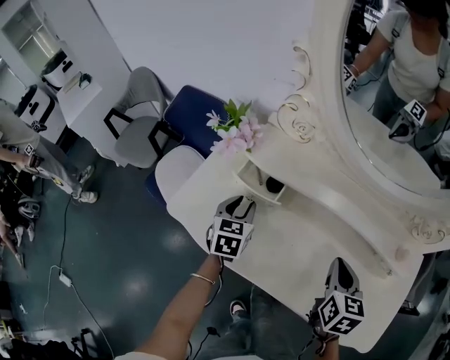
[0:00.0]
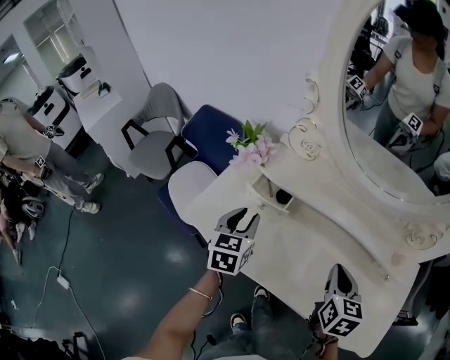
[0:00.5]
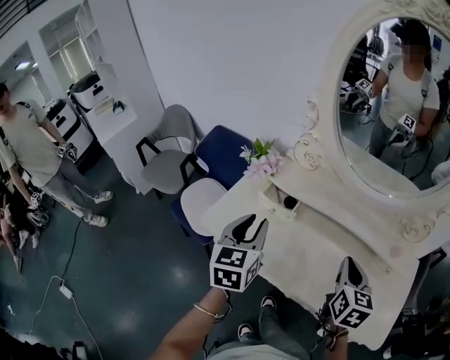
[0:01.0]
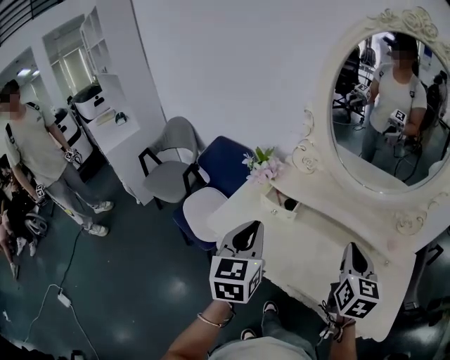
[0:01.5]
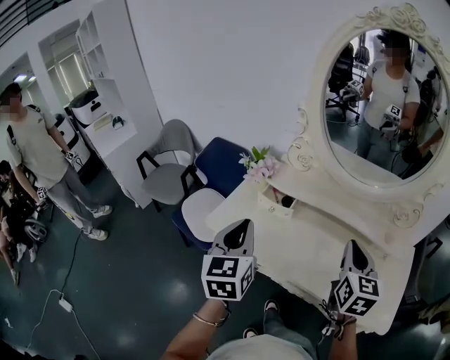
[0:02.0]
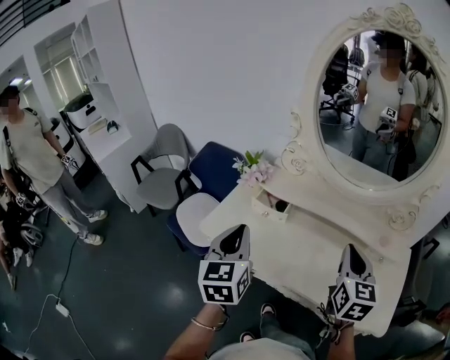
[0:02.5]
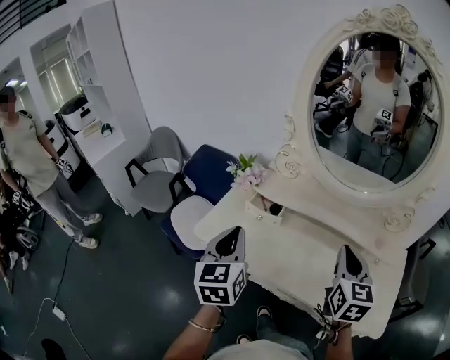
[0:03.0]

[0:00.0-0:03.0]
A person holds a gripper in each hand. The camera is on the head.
0:00.0 to 0:01.5: The right gripper moves upward, roughly 15 cm, and changes its angle by some 20 degrees, while the left gripper is displaced upward and backward by about 35 cm, rotates roughly 30 degrees, and closes up.
0:01.5 to 0:03.0: There are only small adjustments of the grippers.

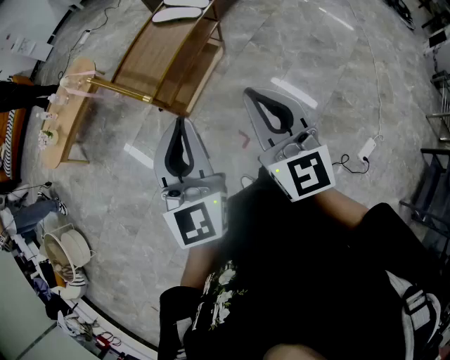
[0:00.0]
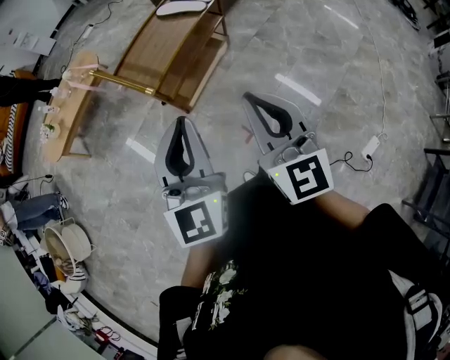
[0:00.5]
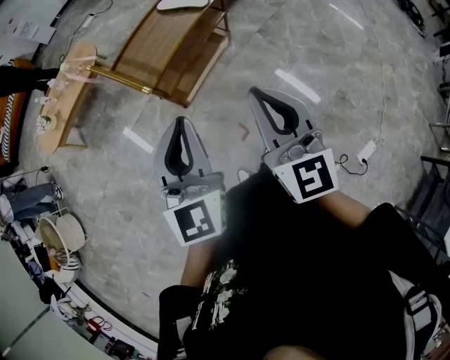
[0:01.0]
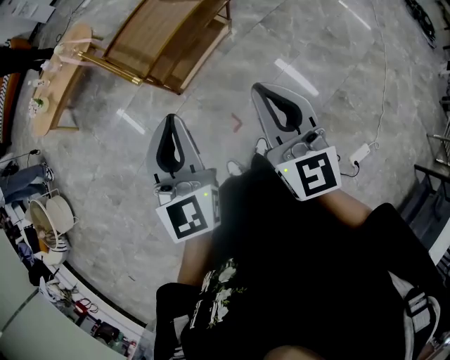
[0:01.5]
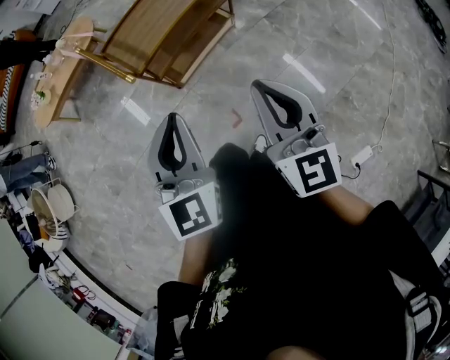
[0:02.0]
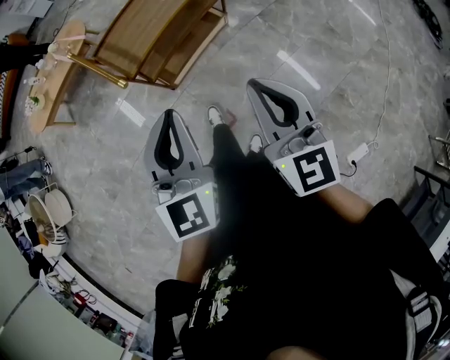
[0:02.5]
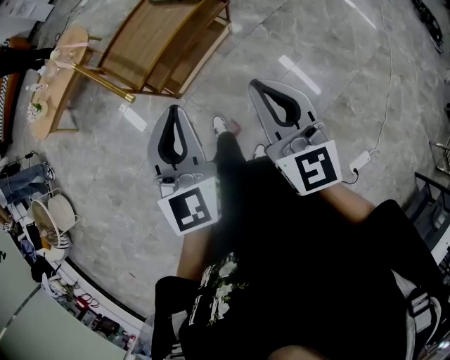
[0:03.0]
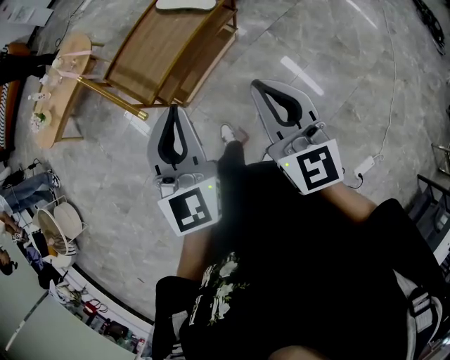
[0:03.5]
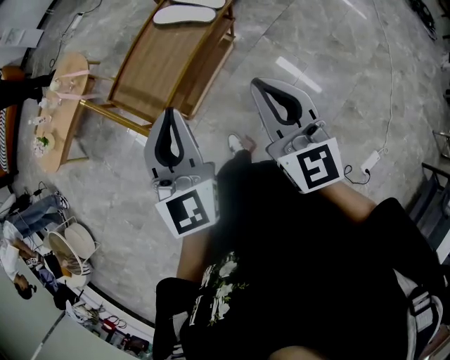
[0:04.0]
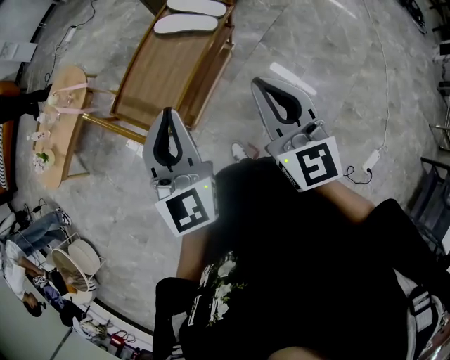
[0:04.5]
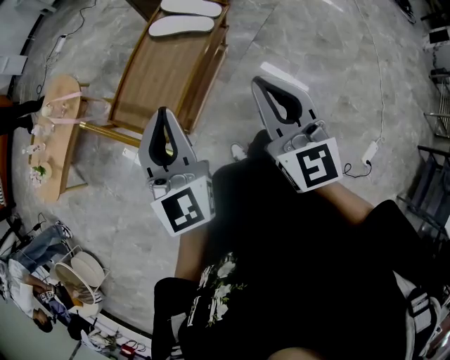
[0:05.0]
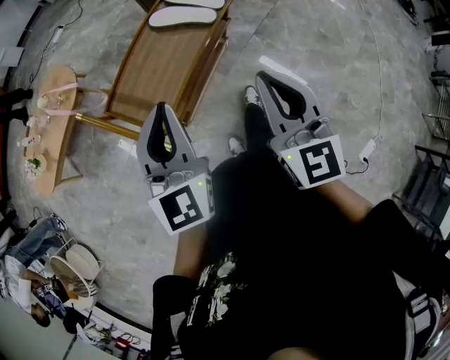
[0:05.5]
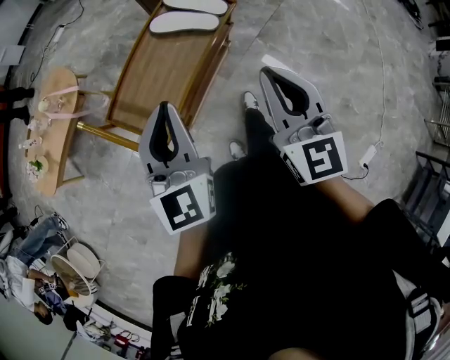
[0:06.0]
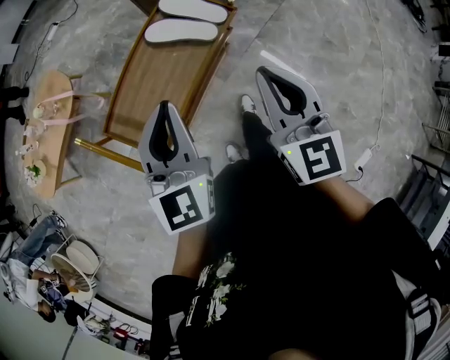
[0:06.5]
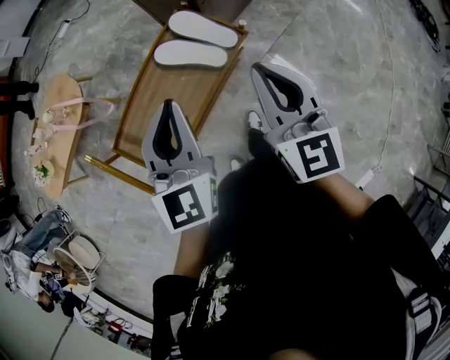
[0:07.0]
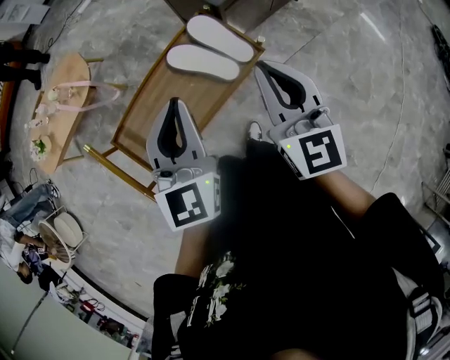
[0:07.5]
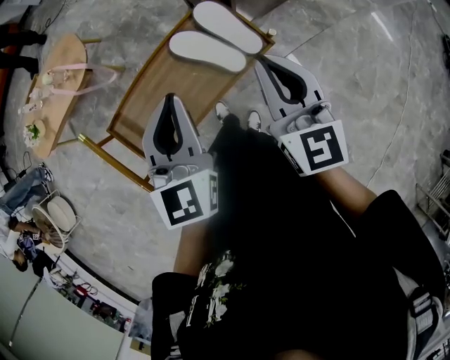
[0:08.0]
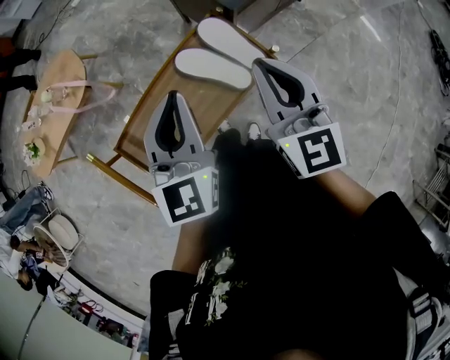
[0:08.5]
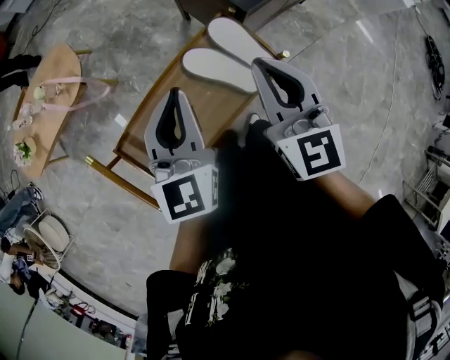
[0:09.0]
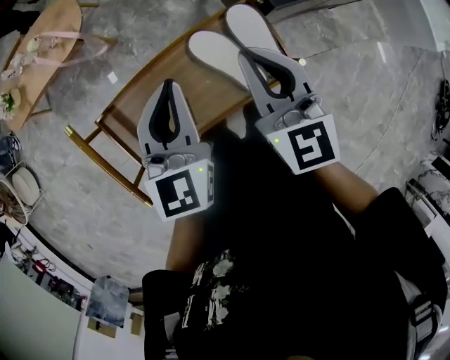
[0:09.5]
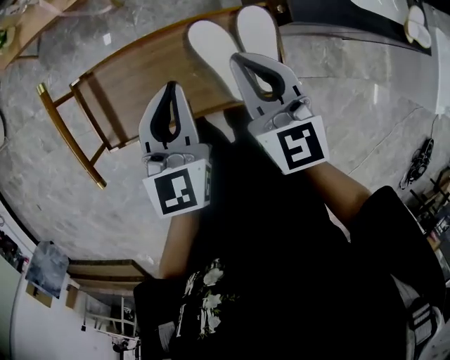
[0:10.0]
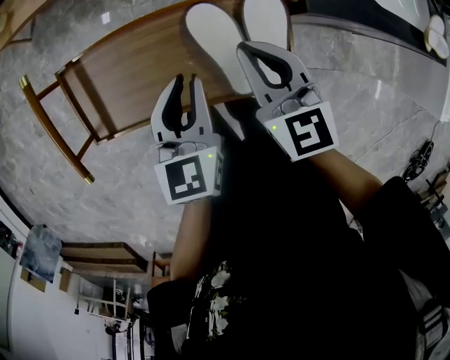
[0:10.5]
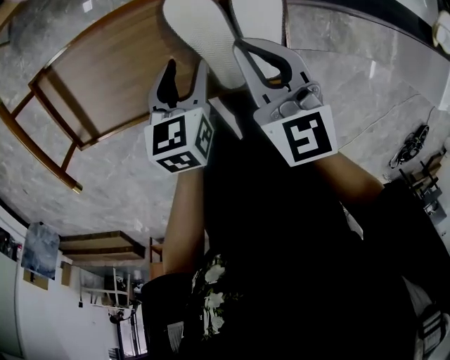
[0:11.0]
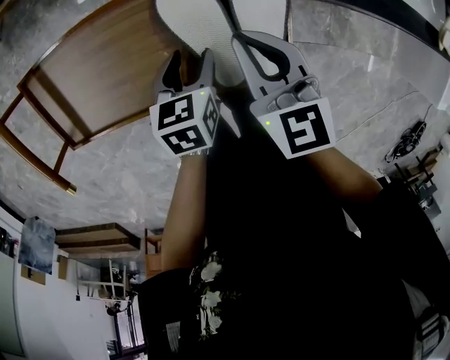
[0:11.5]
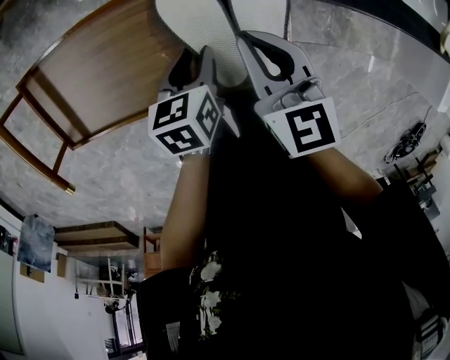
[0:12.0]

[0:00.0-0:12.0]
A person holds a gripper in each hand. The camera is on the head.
0:00.0 to 0:02.0: The left gripper shifts some 10 cm downward and to the right; the right gripper shifts about 10 cm to the right.
0:02.0 to 0:04.0: Both grippers travel together forward, some 20 cm.
0:04.0 to 0:06.0: Both grippers move forward, roughly 10 cm.
0:06.0 to 0:08.0: Both grippers move forward, some 20 cm. The right gripper rotates about 20 degrees.
0:08.0 to 0:10.0: The right gripper shifts by some 15 cm, and changes its angle by some 40 degrees. Meanwhile the left gripper goes roughly 10 cm downward, and rotates about 30 degrees.
0:10.0 to 0:12.0: The left gripper moves downward, roughly 25 cm, turns by approximately 40 degrees, and opens up; the right gripper heads downward, covering some 15 cm.

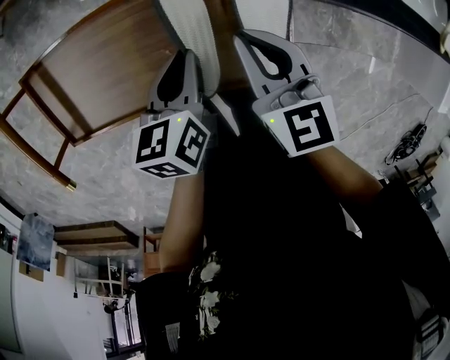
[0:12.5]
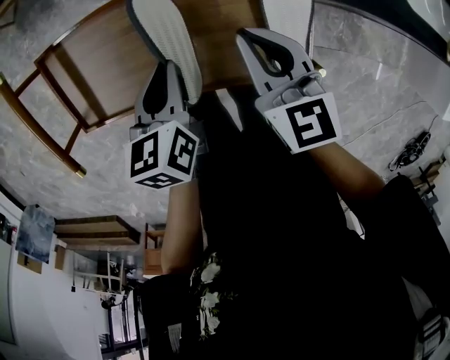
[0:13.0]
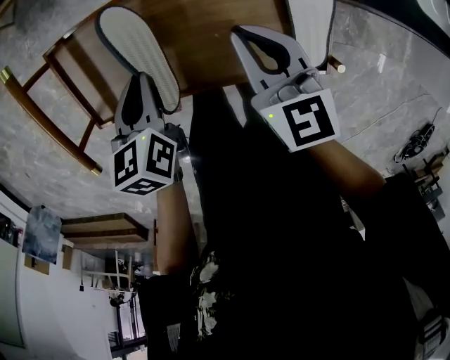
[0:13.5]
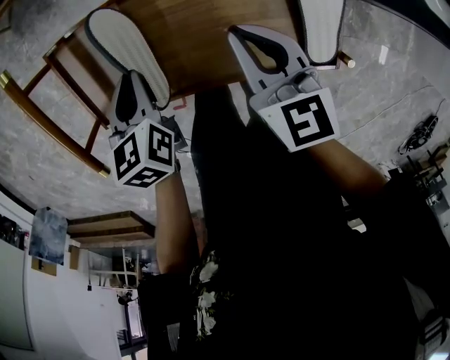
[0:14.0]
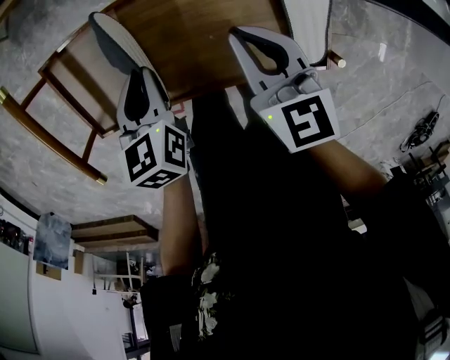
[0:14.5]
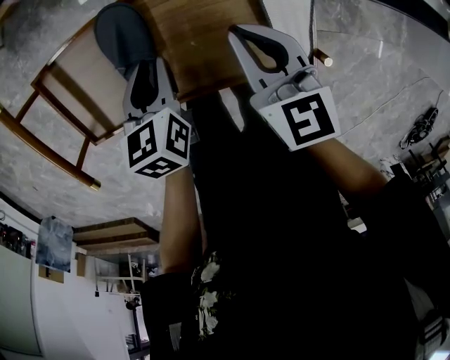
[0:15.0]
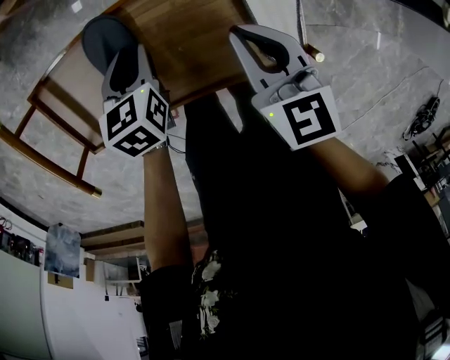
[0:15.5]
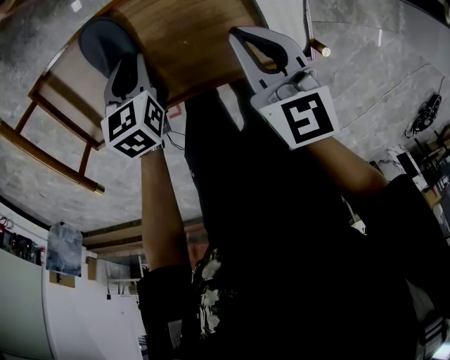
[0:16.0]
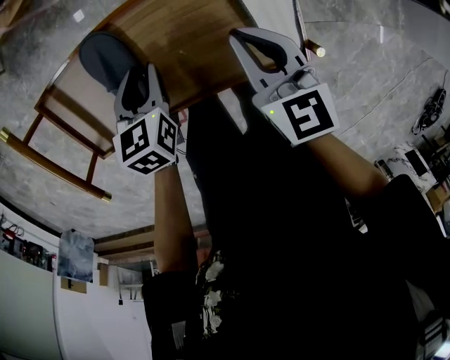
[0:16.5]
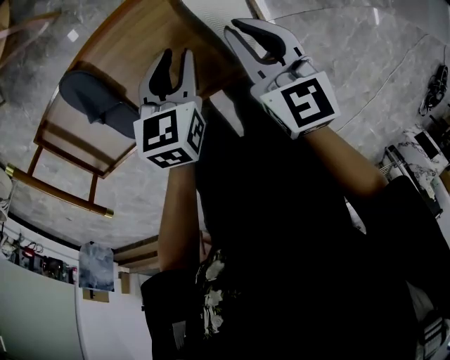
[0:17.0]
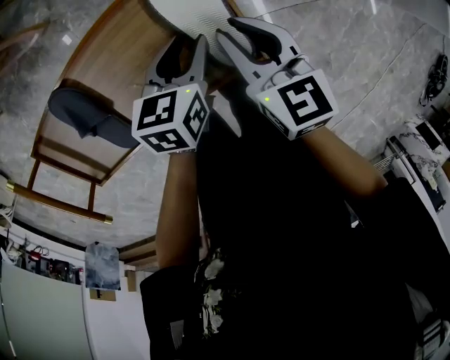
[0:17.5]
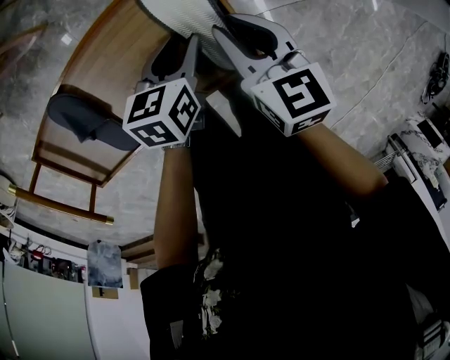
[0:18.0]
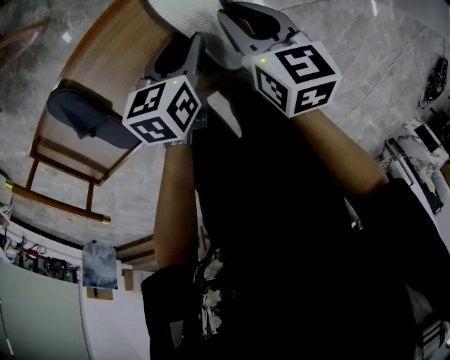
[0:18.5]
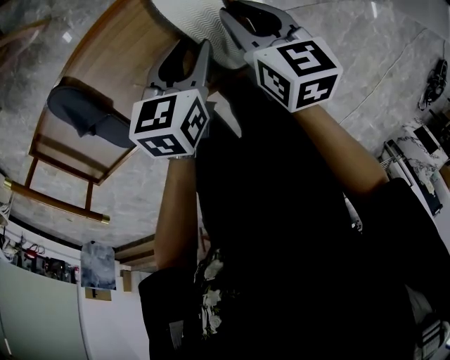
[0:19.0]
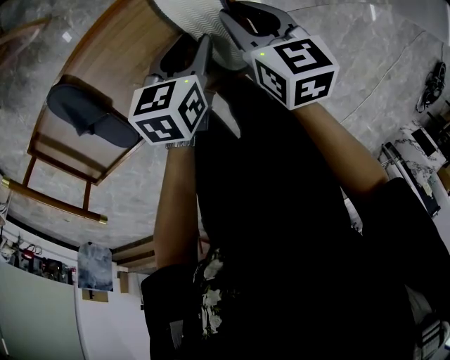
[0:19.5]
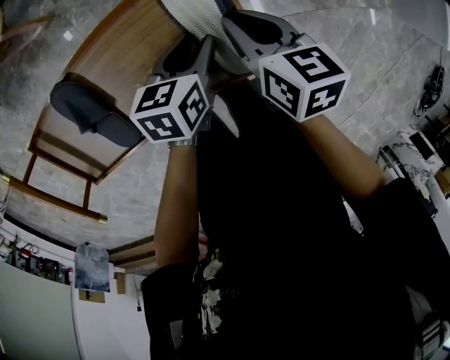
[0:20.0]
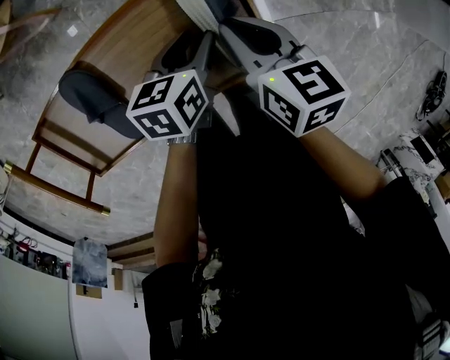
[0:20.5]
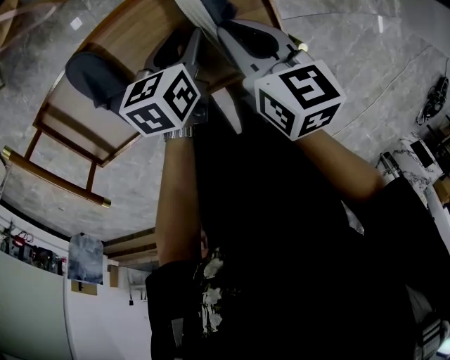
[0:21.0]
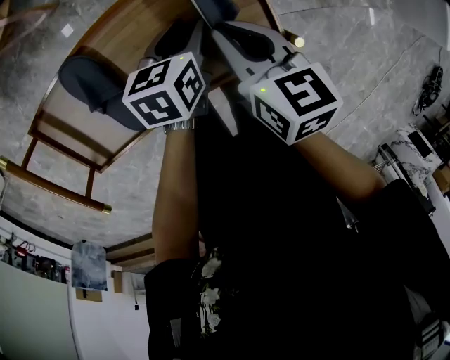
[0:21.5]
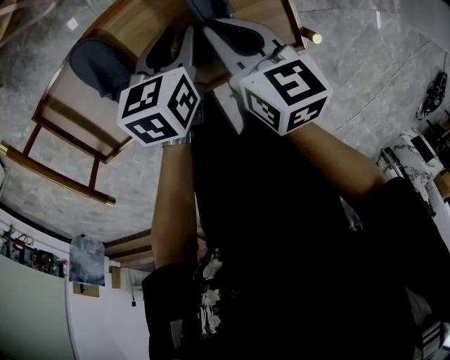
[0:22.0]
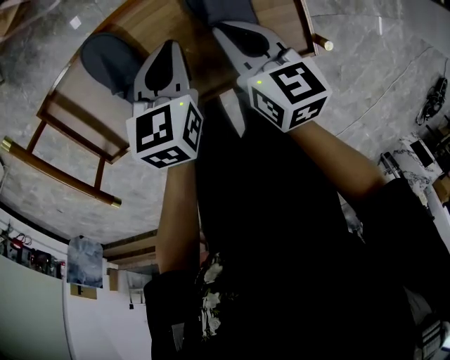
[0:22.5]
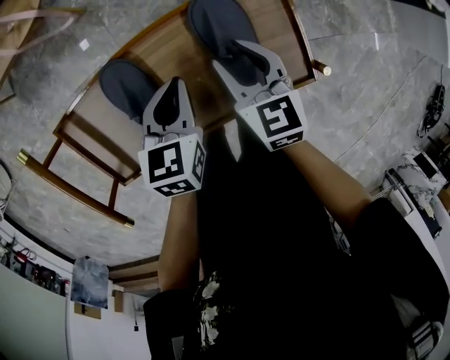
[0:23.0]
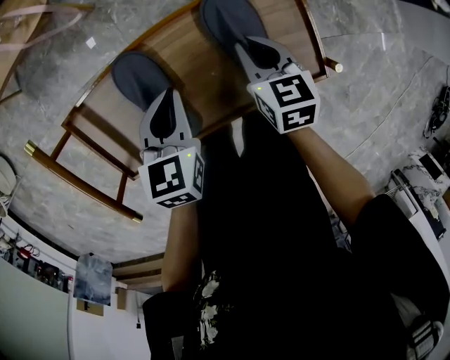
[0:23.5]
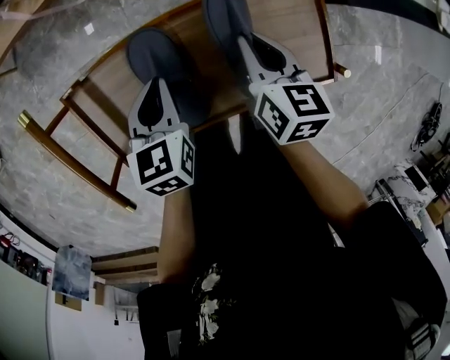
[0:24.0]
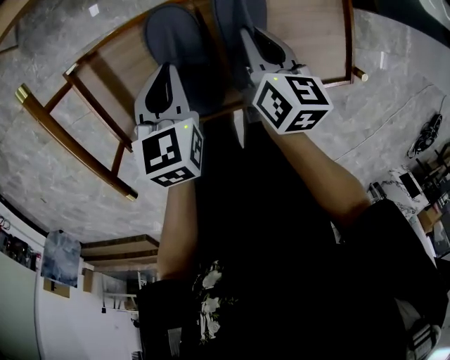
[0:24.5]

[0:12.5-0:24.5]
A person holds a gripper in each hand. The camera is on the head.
0:12.5 to 0:14.5: The right gripper goes some 10 cm to the left. Meanwhile the left gripper shifts approximately 20 cm to the left, and swivels roughly 20 degrees.
0:14.5 to 0:16.5: Both grippers move to the right, approximately 5 cm.
0:16.5 to 0:18.5: The left gripper shifts roughly 20 cm to the right, and turns by some 30 degrees, while the right gripper goes roughly 15 cm to the right and forward, and swivels about 20 degrees.
0:18.5 to 0:20.5: The right gripper moves to the left, some 5 cm.
0:20.5 to 0:22.5: The two grippers go roughly 10 cm to the left. The left gripper closes its fingers.
0:22.5 to 0:24.5: The right gripper goes approximately 5 cm to the left, and opens, then closes once more, while the left gripper is displaced to the left by about 15 cm.
